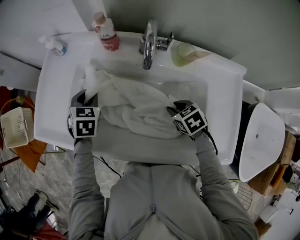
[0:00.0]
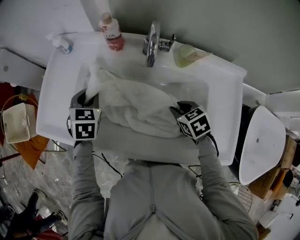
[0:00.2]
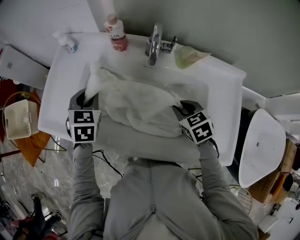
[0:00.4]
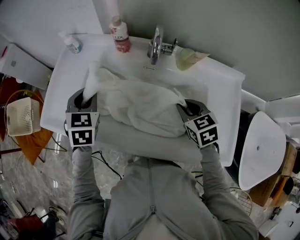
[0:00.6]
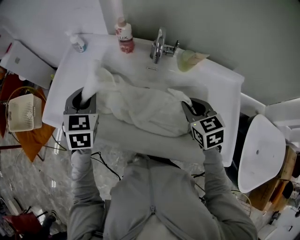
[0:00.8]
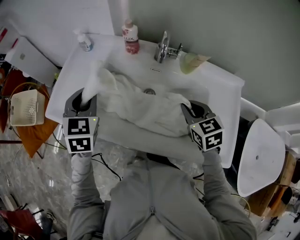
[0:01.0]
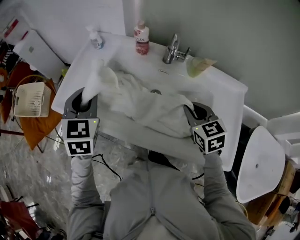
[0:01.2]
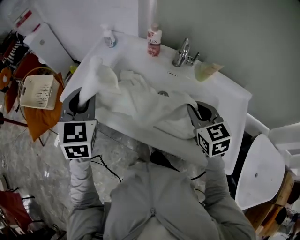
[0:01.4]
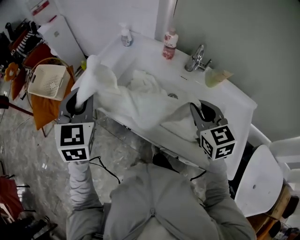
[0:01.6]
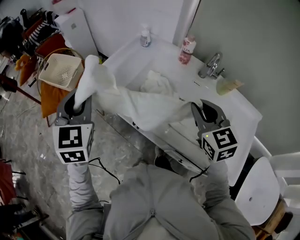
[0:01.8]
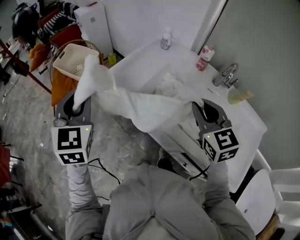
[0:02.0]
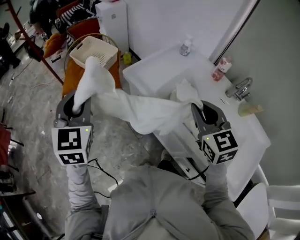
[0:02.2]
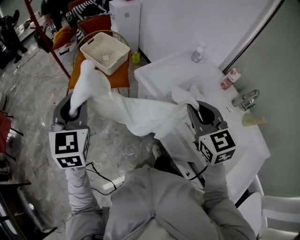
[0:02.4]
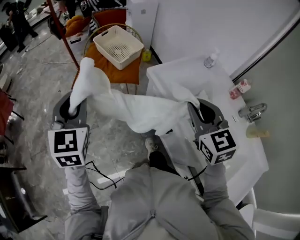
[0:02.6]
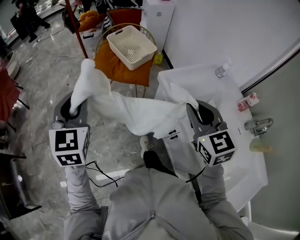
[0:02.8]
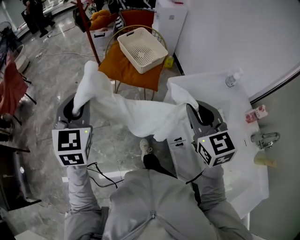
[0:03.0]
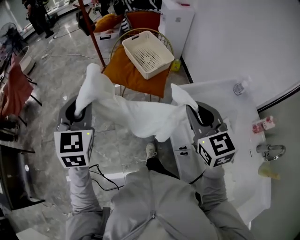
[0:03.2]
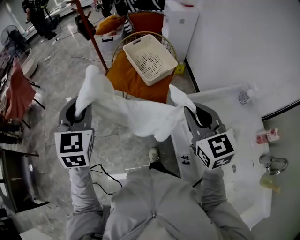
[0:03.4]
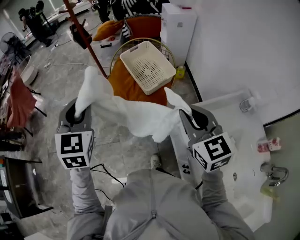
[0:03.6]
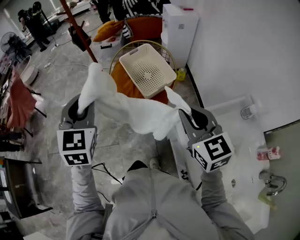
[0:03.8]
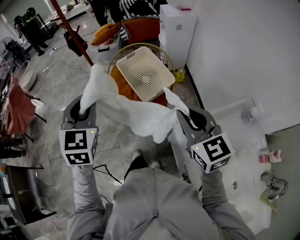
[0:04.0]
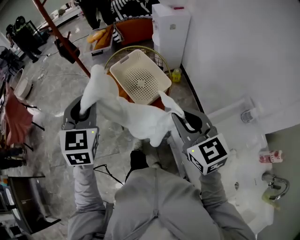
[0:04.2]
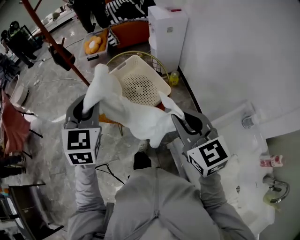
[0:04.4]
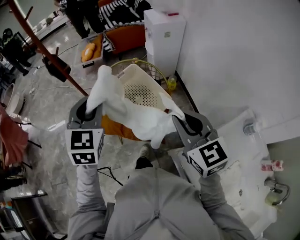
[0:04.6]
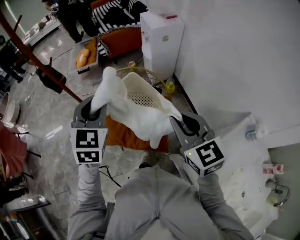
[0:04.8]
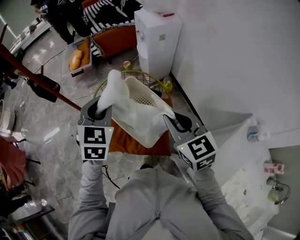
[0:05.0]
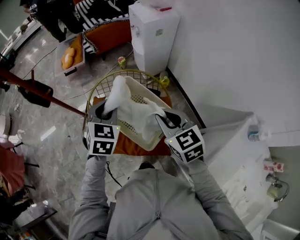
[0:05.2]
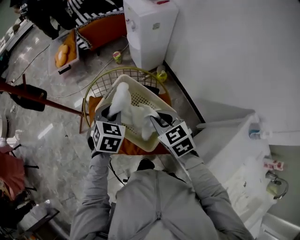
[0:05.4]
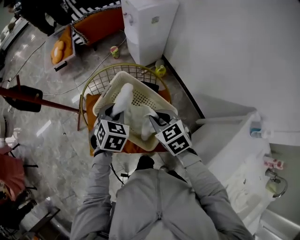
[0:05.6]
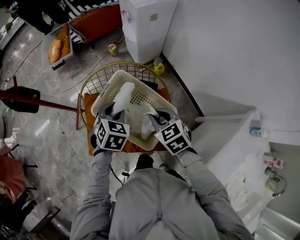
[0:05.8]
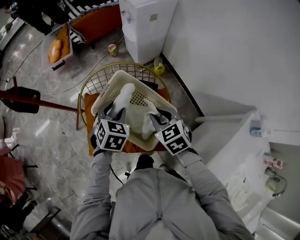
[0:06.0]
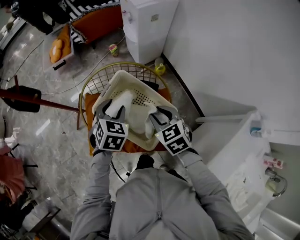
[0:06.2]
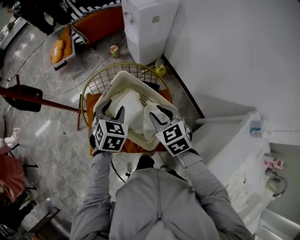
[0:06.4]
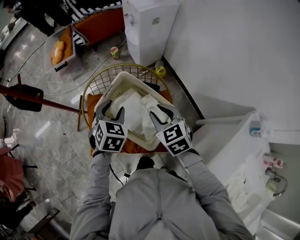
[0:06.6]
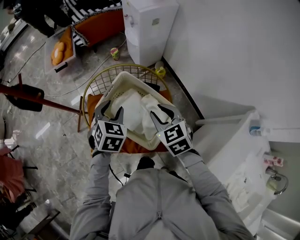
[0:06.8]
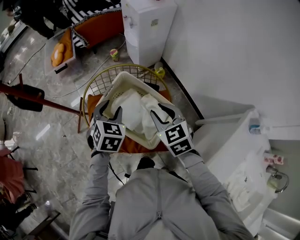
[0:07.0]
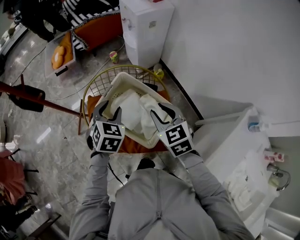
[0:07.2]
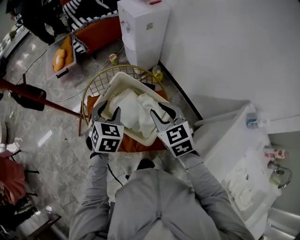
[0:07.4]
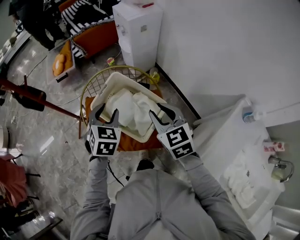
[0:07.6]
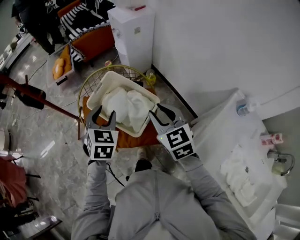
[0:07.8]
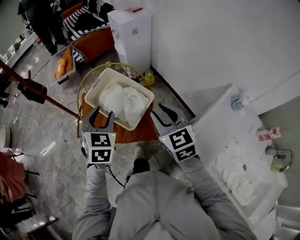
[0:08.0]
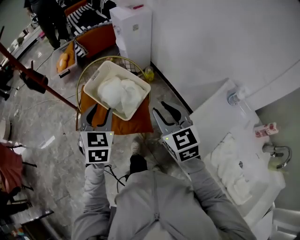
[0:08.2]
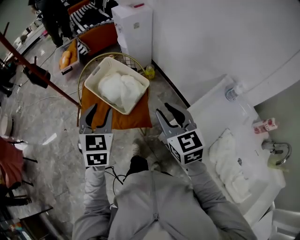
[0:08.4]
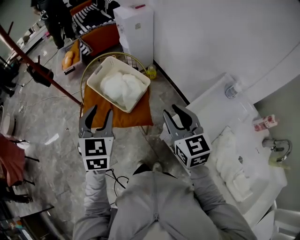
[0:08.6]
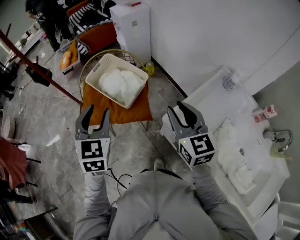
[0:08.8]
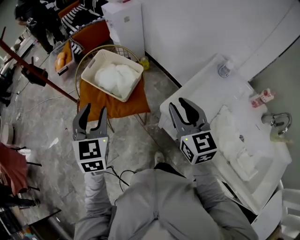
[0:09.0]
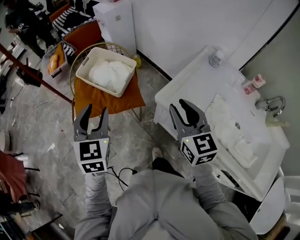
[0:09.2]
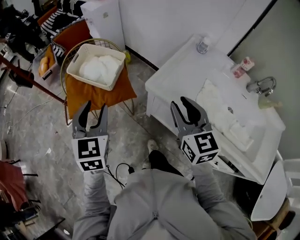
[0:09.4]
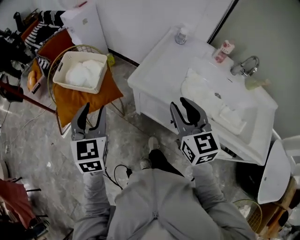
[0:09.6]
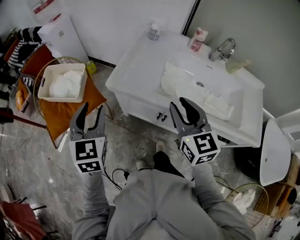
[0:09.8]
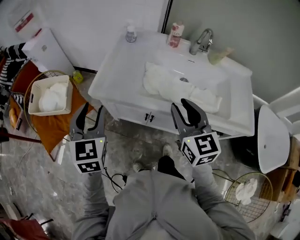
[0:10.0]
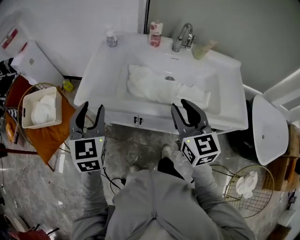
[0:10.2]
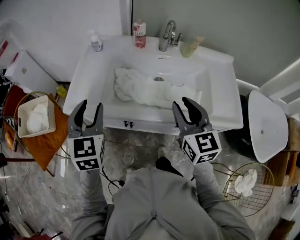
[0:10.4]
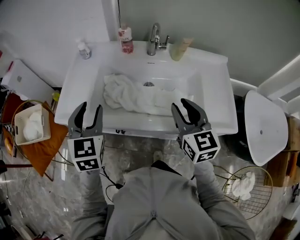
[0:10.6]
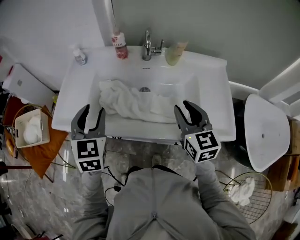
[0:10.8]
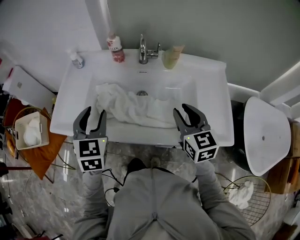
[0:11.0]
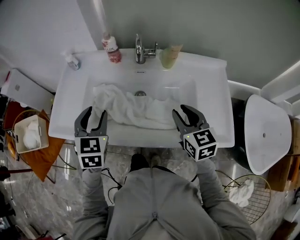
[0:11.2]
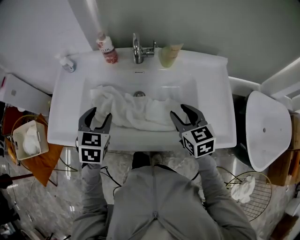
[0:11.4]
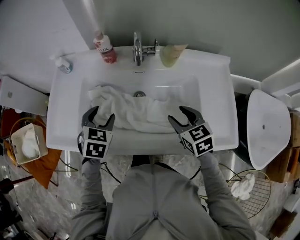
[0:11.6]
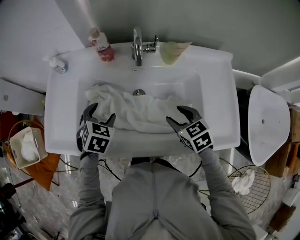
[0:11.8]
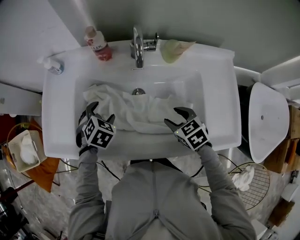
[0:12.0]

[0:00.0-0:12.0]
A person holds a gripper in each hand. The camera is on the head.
0:00.0 to 0:01.6: The right gripper heads upward and to the left, covering some 25 cm, and tilts its fingers approximately 40 degrees upward, while the left gripper moves upward, to the left and backward, roughly 35 cm, and turns by about 30 degrees.
0:01.6 to 0:03.0: The two grippers travel together, approximately 40 cm. The left gripper changes its angle by approximately 40 degrees. Meanwhile the right gripper swivels about 50 degrees.
0:03.0 to 0:04.4: The right gripper moves forward, roughly 30 cm. Meanwhile the left gripper goes roughly 35 cm forward and to the right.
0:04.4 to 0:06.0: The right gripper moves forward and downward, approximately 35 cm, and angles its fingers downward, by about 30 degrees, while the left gripper shifts approximately 35 cm downward and forward, and points its fingers roughly 30 degrees further downward.
0:06.0 to 0:07.6: Both grippers travel together upward and backward, about 10 cm.
0:07.6 to 0:09.0: The left gripper heads backward and upward, covering about 30 cm; the right gripper is displaced backward and to the right by approximately 30 cm, and swivels roughly 20 degrees.
0:09.0 to 0:10.4: The pair of grippers is taken roughly 40 cm. The right gripper swivels approximately 50 degrees. Meanwhile the left gripper rotates about 40 degrees.
0:10.4 to 0:12.0: The right gripper goes some 30 cm downward, to the right and forward, and tips its fingers downward by approximately 40 degrees, while the left gripper is displaced downward, forward and to the right by about 35 cm, and angles its fingers downward, by some 40 degrees.

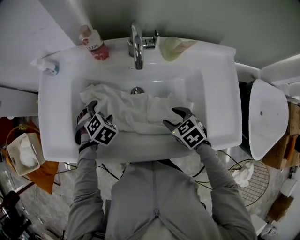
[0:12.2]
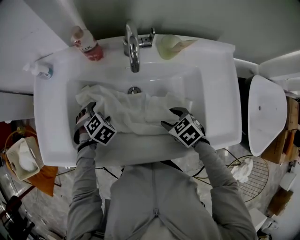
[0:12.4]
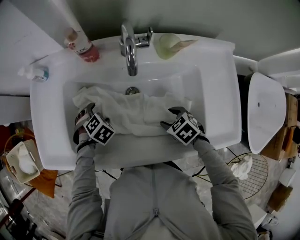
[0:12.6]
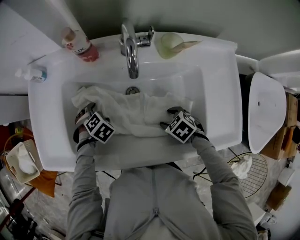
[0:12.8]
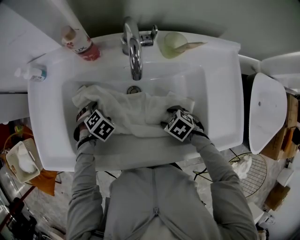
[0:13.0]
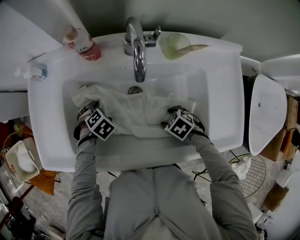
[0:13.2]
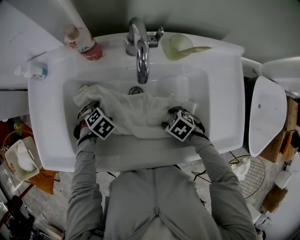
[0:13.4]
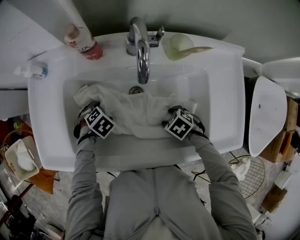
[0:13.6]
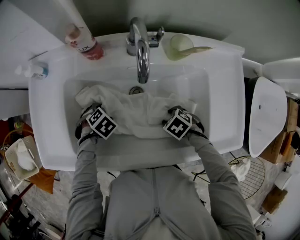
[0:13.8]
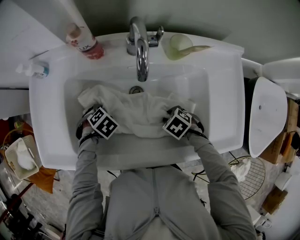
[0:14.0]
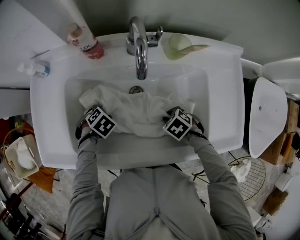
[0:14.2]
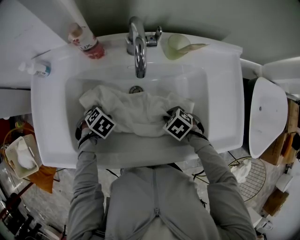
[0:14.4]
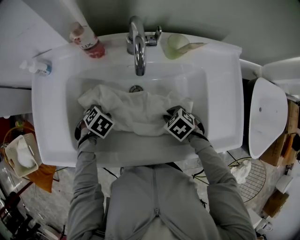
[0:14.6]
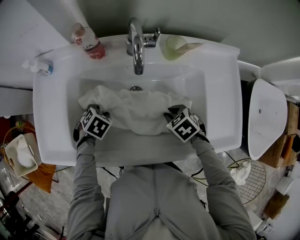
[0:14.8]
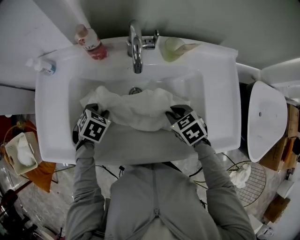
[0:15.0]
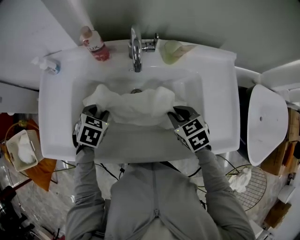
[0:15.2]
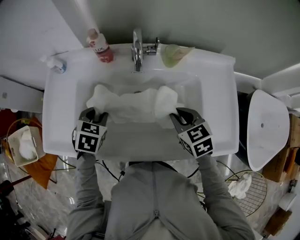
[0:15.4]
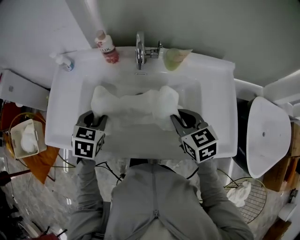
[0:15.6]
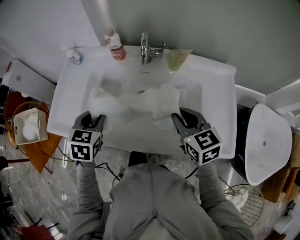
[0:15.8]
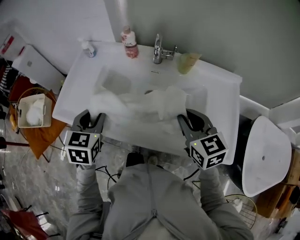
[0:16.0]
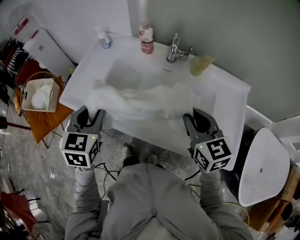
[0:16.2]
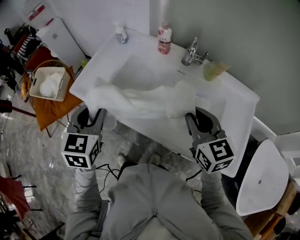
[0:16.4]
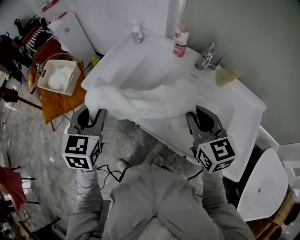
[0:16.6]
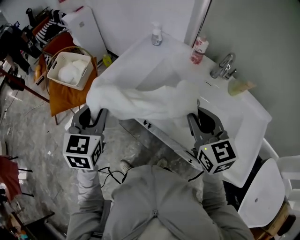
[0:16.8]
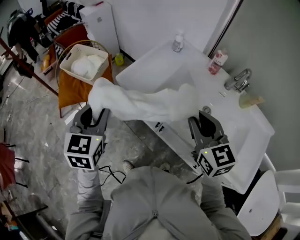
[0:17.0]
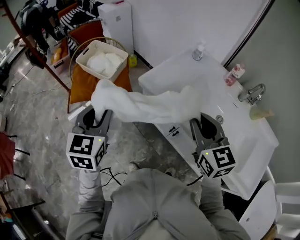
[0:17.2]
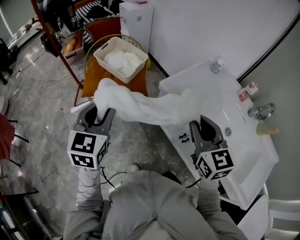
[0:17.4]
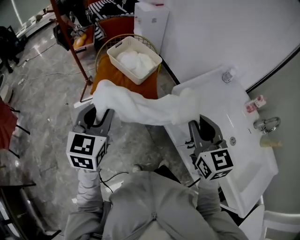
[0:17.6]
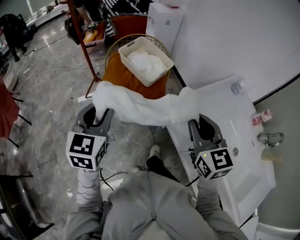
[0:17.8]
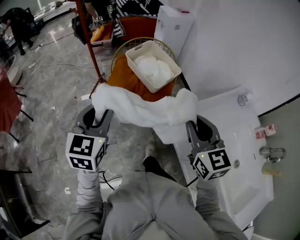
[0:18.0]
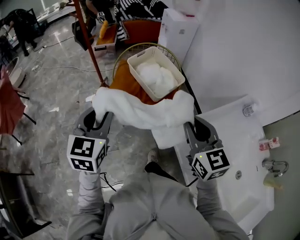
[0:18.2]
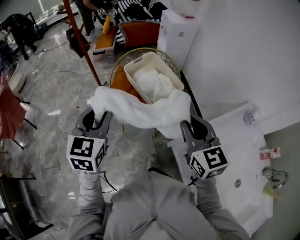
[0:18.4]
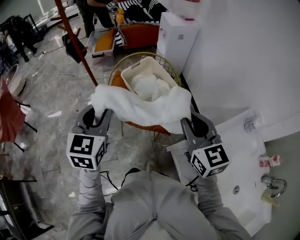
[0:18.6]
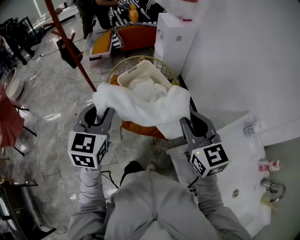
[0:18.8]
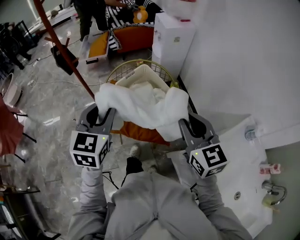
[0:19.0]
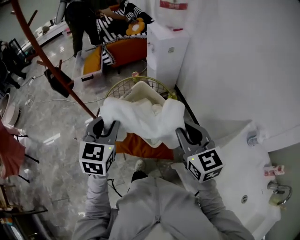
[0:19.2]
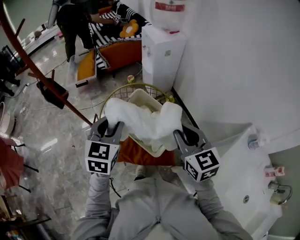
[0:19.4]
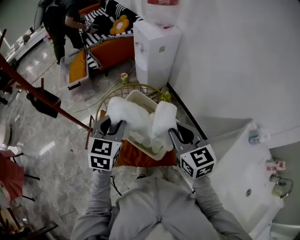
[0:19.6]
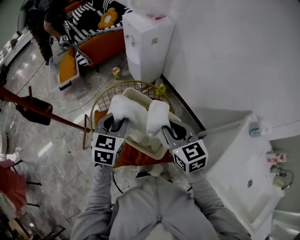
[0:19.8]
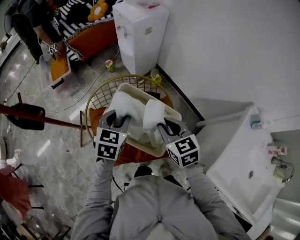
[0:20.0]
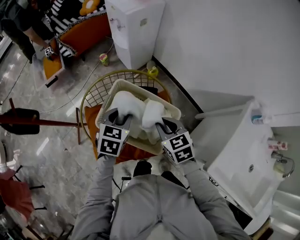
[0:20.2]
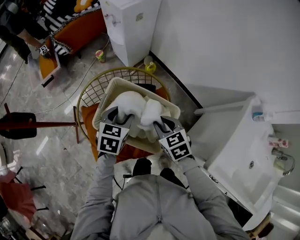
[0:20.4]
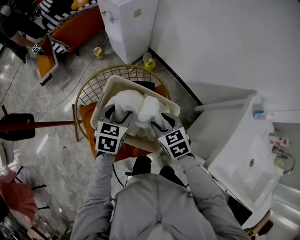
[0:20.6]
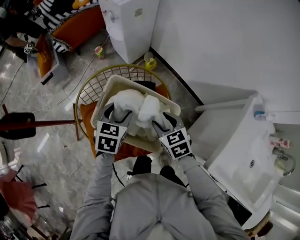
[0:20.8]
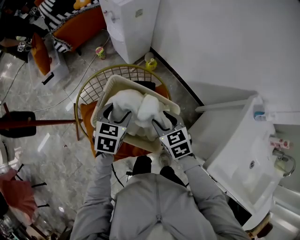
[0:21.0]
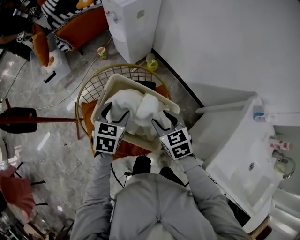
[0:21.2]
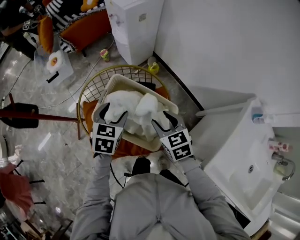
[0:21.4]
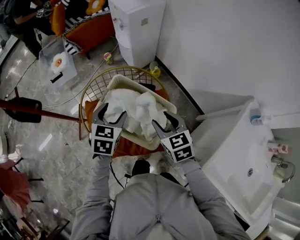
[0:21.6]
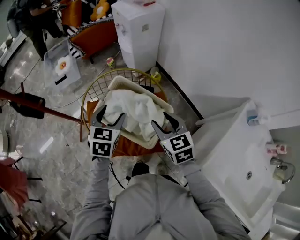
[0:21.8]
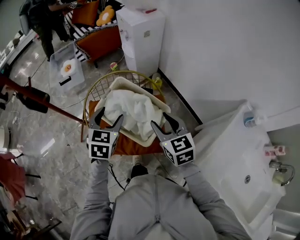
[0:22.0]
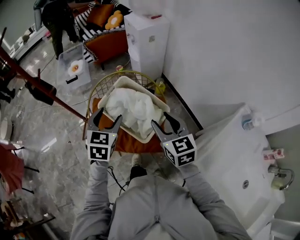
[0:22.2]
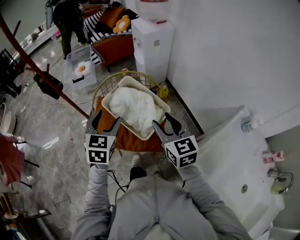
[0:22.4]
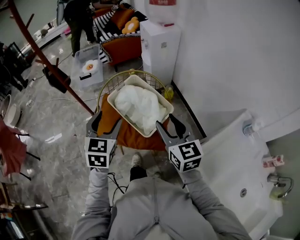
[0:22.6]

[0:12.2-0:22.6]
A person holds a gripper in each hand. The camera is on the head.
0:12.2 to 0:13.6: The grippers both shift downward by approximately 10 cm. The right gripper swivels approximately 30 degrees.
0:13.6 to 0:15.2: The two grippers go about 15 cm upward. The right gripper turns by about 30 degrees, and closes, while the left gripper turns by approximately 30 degrees, and closes its fingers.
0:15.2 to 0:16.6: The right gripper heads upward, covering some 20 cm, and tips its fingers upward by approximately 30 degrees, while the left gripper changes place by approximately 35 cm, and angles its fingers upward, by roughly 40 degrees.
0:16.6 to 0:18.2: The two grippers travel together, approximately 50 cm. The left gripper turns by about 40 degrees, while the right gripper rotates about 40 degrees.
0:18.2 to 0:19.6: Both grippers travel together forward, approximately 35 cm.
0:19.6 to 0:21.2: The right gripper travels downward by approximately 20 cm, turns by roughly 30 degrees, and opens up; the left gripper goes roughly 20 cm downward and forward, rotates approximately 20 degrees, and opens.
0:21.2 to 0:22.6: The left gripper moves backward and upward, approximately 30 cm, and swivels some 30 degrees. Meanwhile the right gripper is displaced upward and backward by approximately 25 cm, and tips its fingers upward by about 30 degrees.

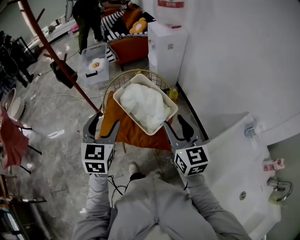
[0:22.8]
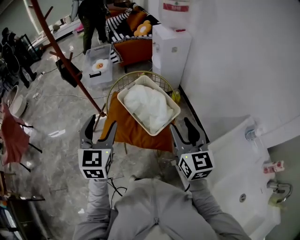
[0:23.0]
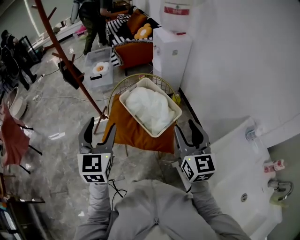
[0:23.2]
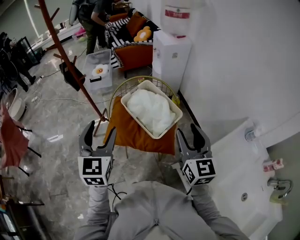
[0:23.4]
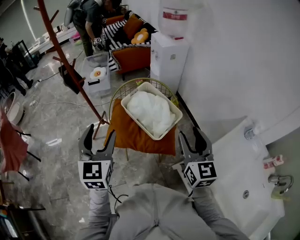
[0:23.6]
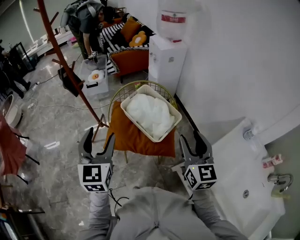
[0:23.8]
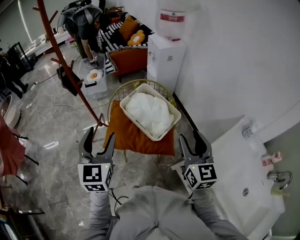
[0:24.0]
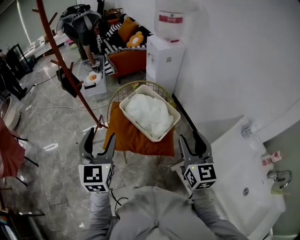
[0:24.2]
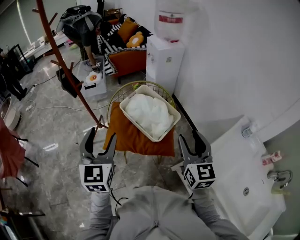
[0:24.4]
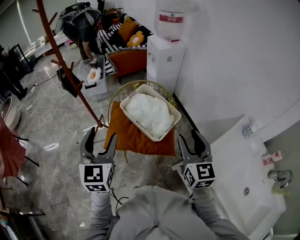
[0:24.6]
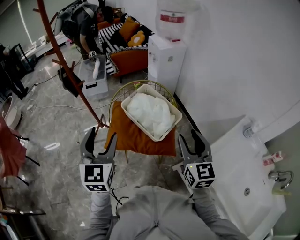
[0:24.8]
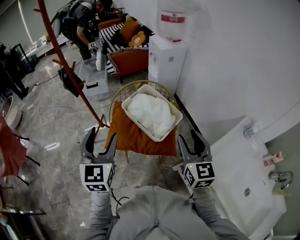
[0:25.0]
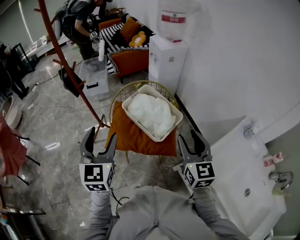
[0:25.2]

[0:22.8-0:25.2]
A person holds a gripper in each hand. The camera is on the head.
0:22.8 to 0:24.0: The left gripper heads to the left, covering some 10 cm; the right gripper shifts roughly 5 cm backward.
0:24.0 to 0:25.2: The grippers move only a little.
